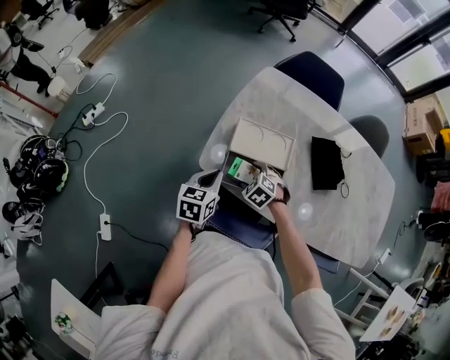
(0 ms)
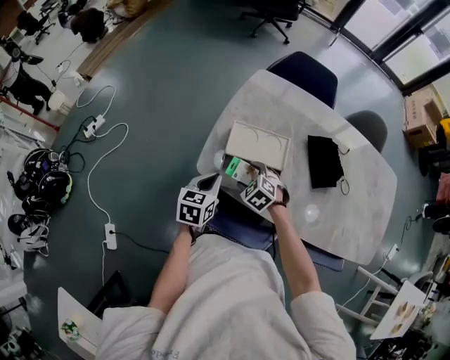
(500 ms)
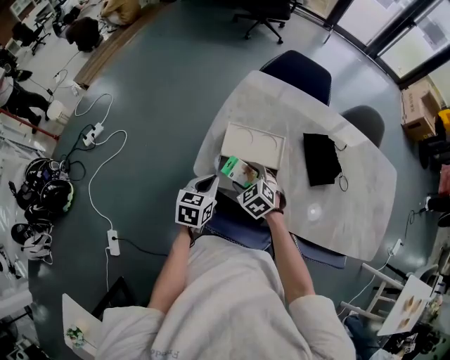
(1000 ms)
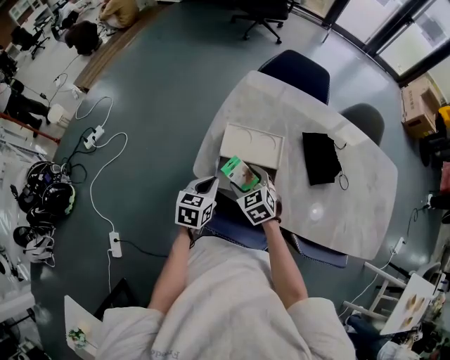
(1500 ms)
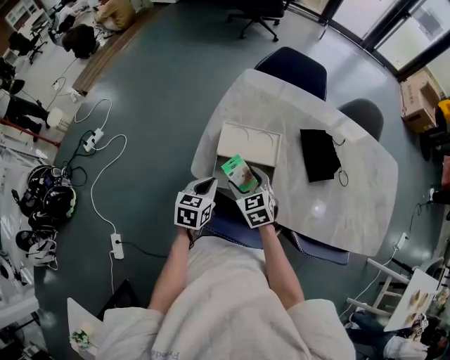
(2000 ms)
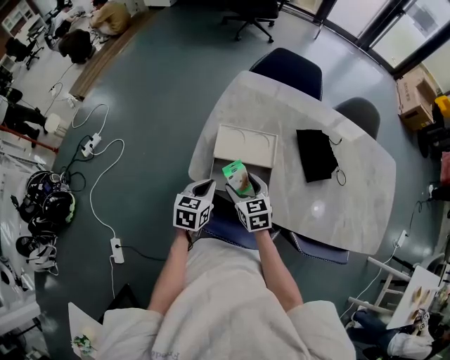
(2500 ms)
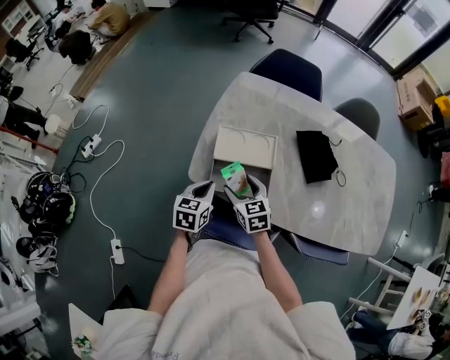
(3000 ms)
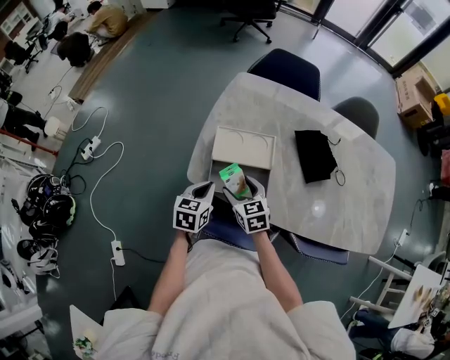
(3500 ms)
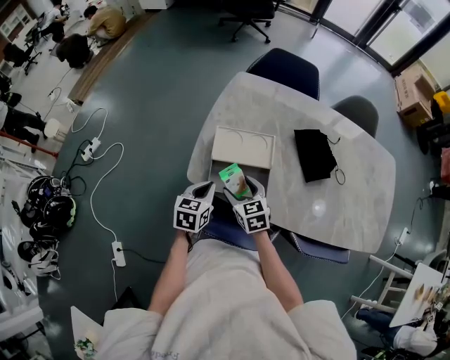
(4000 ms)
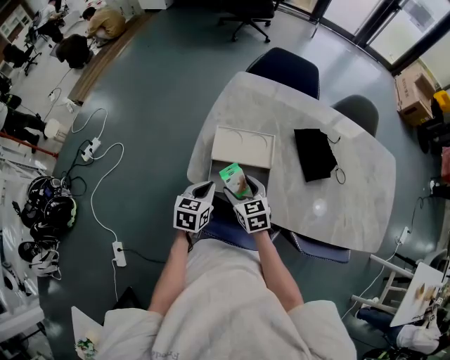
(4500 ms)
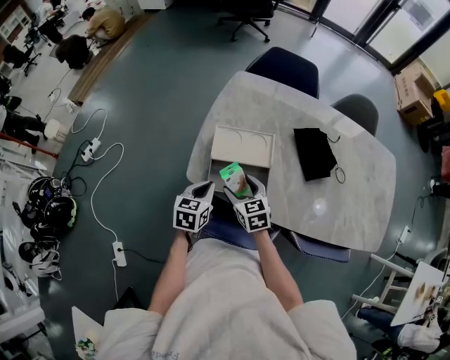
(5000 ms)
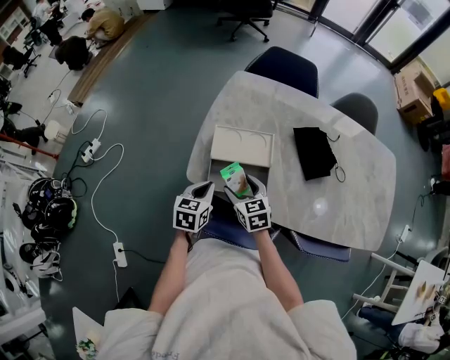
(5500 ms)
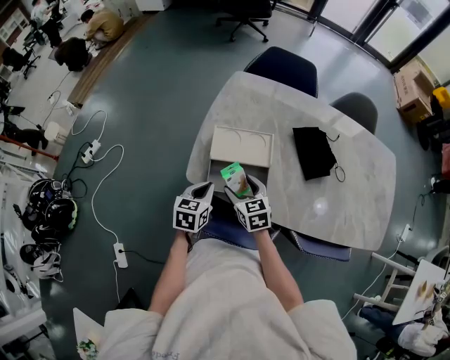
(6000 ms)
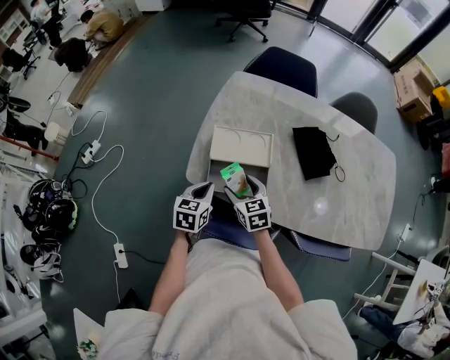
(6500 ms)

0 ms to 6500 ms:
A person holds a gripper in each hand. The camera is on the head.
0 ms to 2000 ms: The right gripper moves upward, roughly 10 cm, and changes its angle by some 40 degrees.
2000 ms to 4500 ms: The grippers stay close to where they were, moving slightly.
4500 ms to 6500 ms: Both grippers stay put.

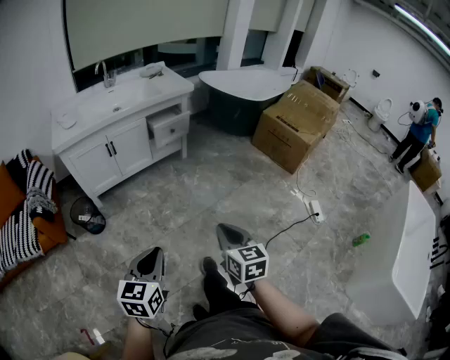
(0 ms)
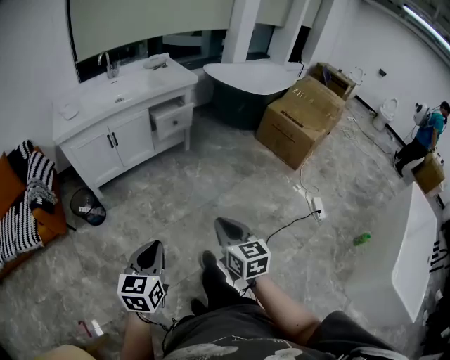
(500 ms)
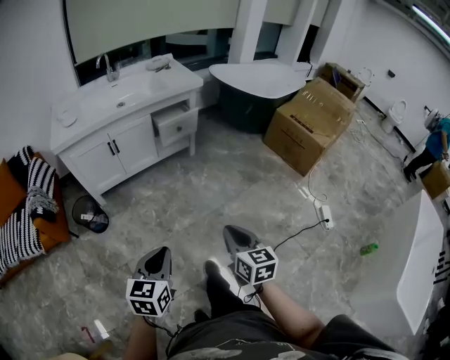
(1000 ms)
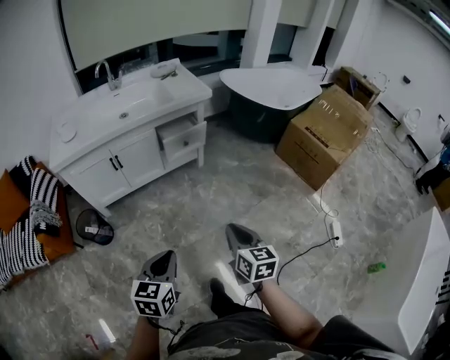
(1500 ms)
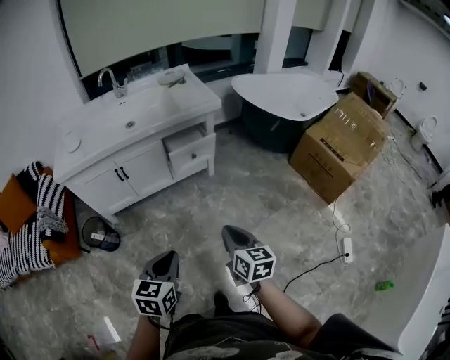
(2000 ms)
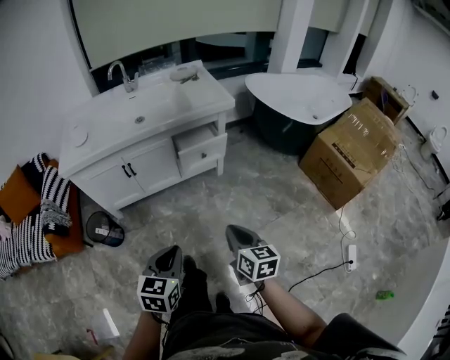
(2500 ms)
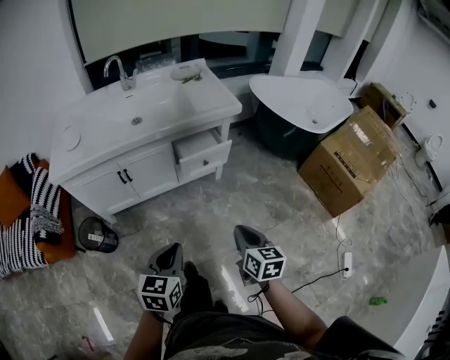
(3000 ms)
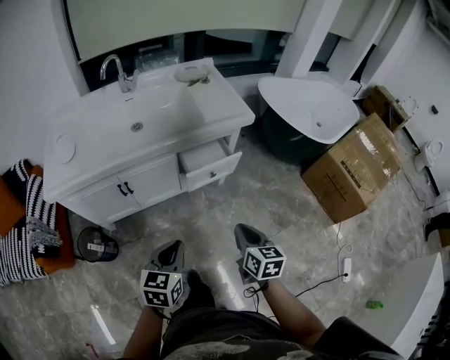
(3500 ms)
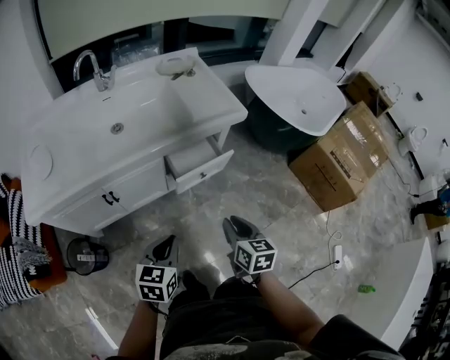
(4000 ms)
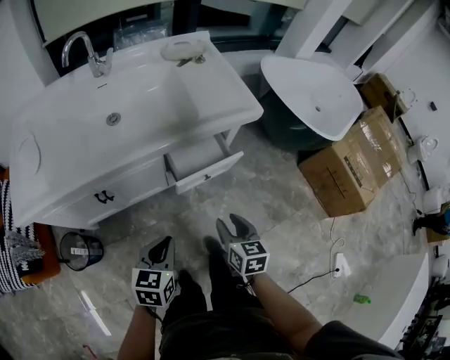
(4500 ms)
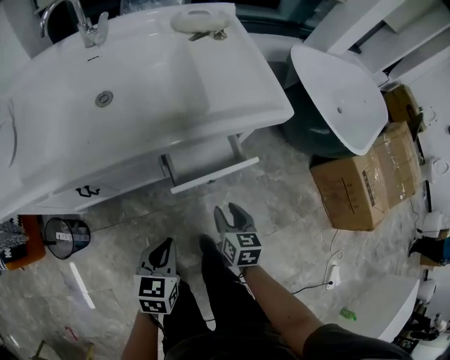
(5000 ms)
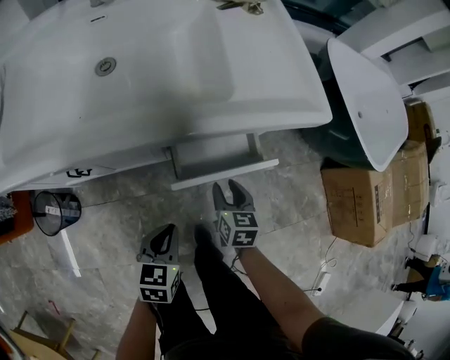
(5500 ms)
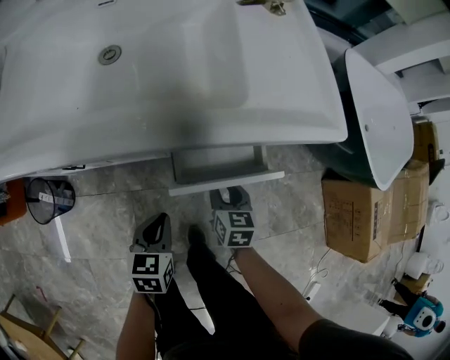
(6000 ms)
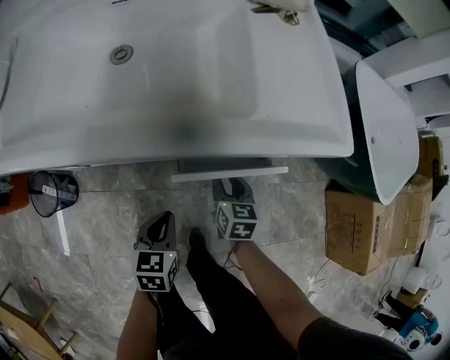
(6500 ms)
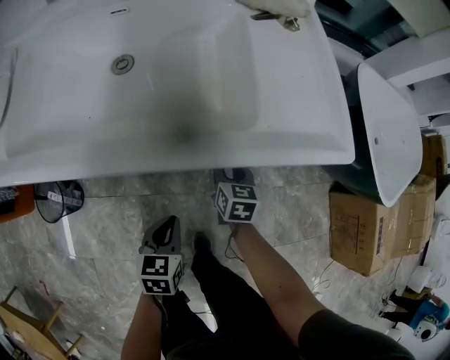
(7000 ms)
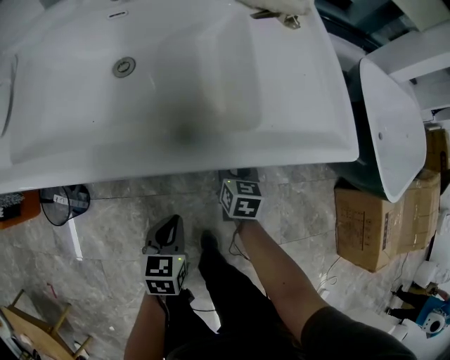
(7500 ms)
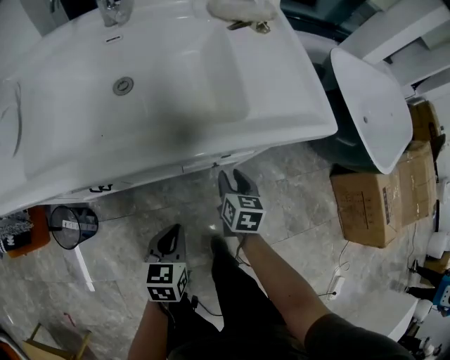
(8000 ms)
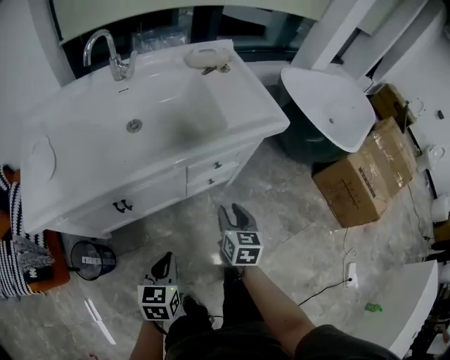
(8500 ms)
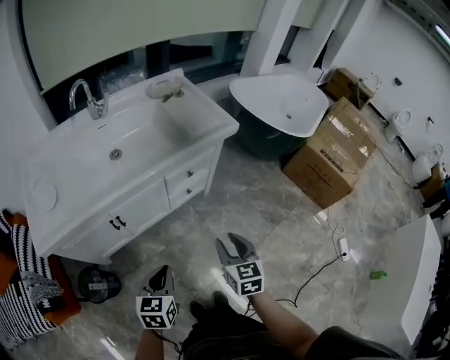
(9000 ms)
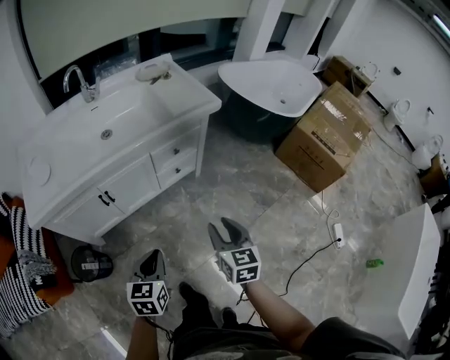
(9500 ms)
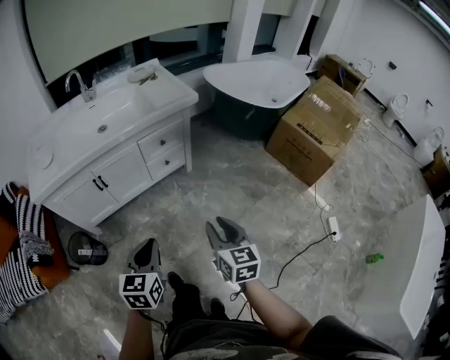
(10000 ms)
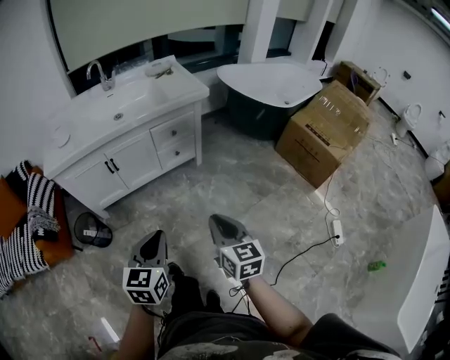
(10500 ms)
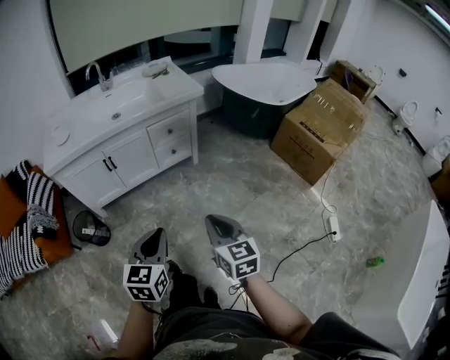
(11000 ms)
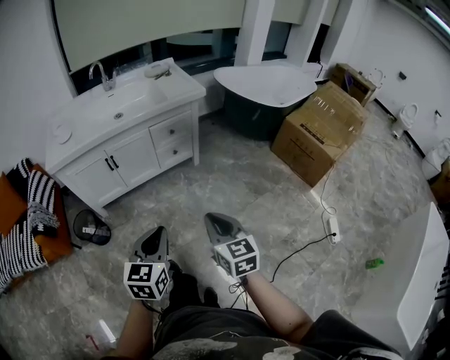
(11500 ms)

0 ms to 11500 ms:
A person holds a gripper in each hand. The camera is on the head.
0 ms to 2000 ms: The two grippers go approximately 30 cm forward.
2000 ms to 4000 ms: Both grippers travel together forward, approximately 30 cm.
4000 ms to 6000 ms: The grippers both shift downward and forward by about 35 cm. The right gripper changes its angle by some 20 degrees, and opens up. Meanwhile the left gripper rotates approximately 30 degrees.
6000 ms to 7500 ms: The right gripper is displaced forward by some 10 cm.
7500 ms to 9500 ms: The two grippers go some 50 cm backward and upward. The left gripper rotates about 30 degrees. The right gripper swivels roughly 20 degrees.
9500 ms to 11500 ms: The left gripper shifts roughly 30 cm backward, to the right and upward; the right gripper is displaced backward by roughly 25 cm, and closes up.

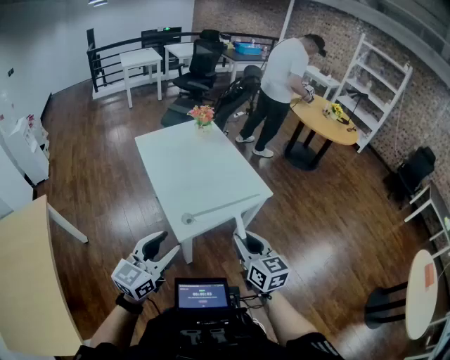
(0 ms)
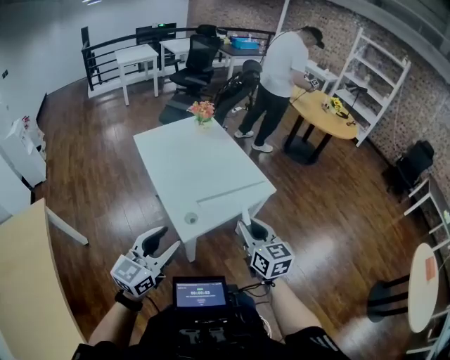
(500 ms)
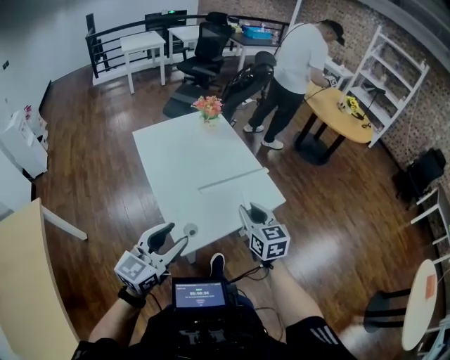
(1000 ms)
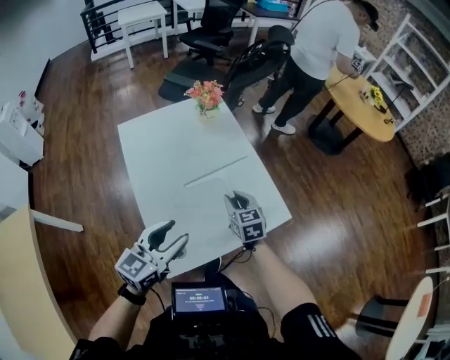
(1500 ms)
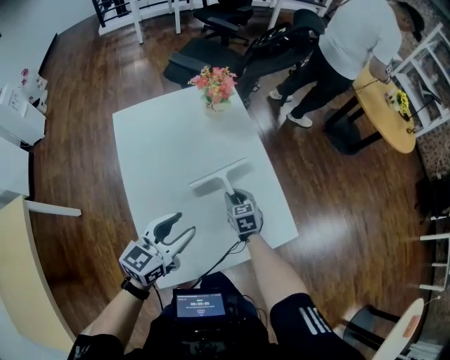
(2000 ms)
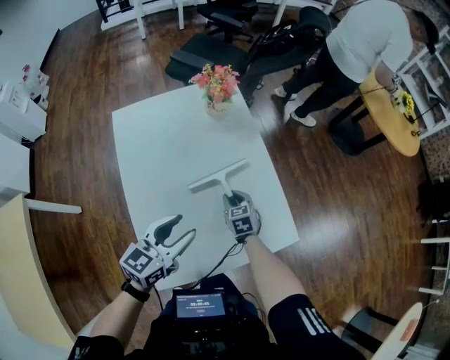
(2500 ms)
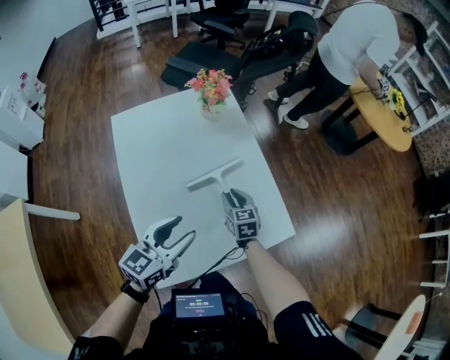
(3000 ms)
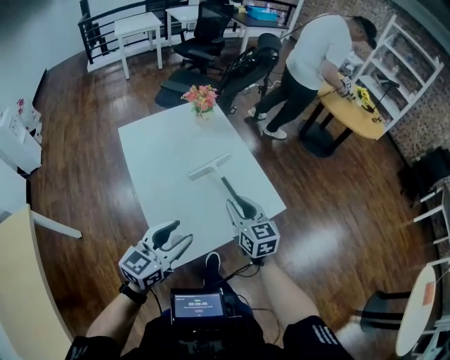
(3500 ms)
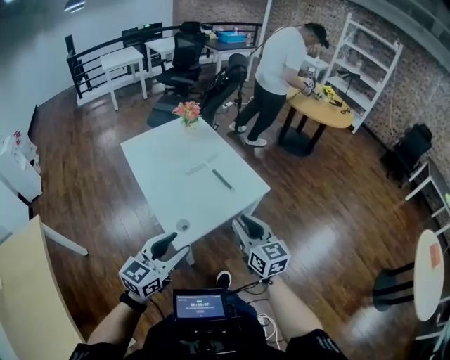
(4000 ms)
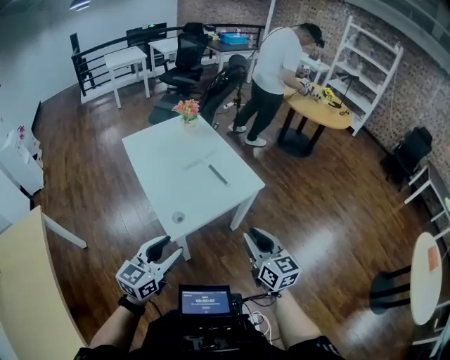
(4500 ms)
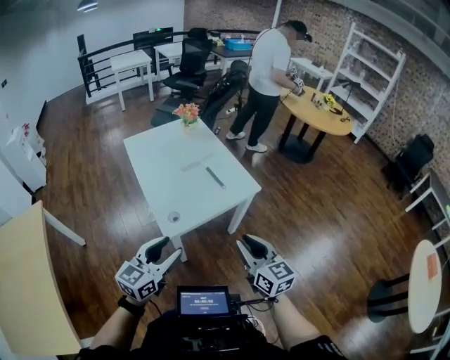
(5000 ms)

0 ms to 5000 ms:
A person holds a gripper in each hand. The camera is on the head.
0 ms to 2500 ms: The two grippers travel together, forward, some 50 cm. The right gripper travels downward by some 35 cm, and angles its fingers downward, by about 30 degrees.
2500 ms to 5000 ms: The pair of grippers is taken backward, approximately 50 cm. The right gripper moves upward, approximately 35 cm, and tips its fingers upward by some 40 degrees.

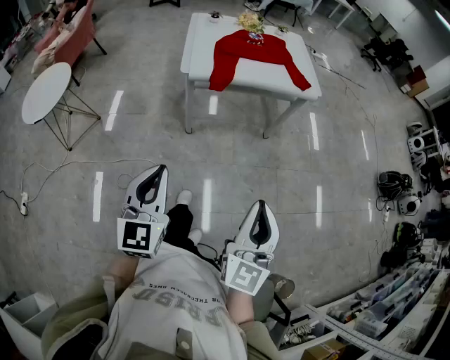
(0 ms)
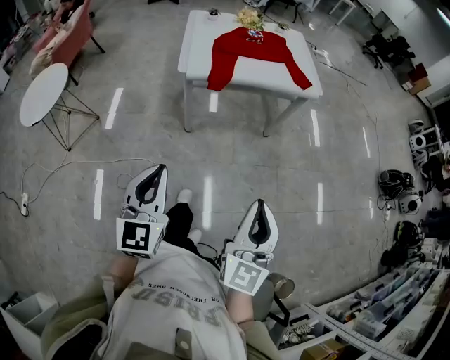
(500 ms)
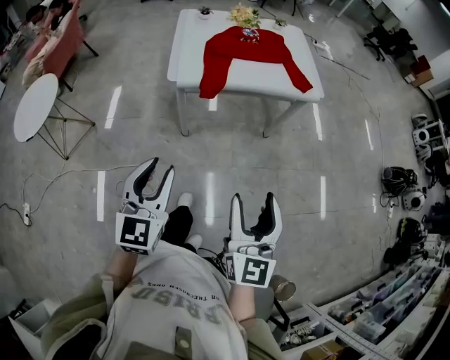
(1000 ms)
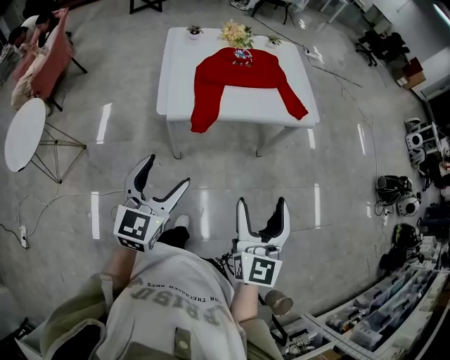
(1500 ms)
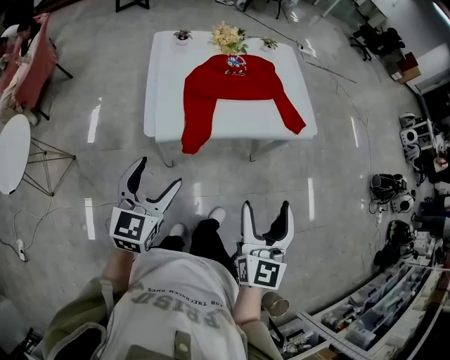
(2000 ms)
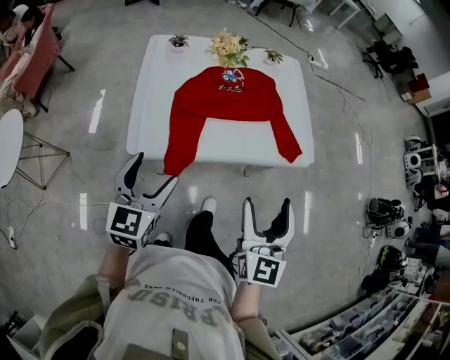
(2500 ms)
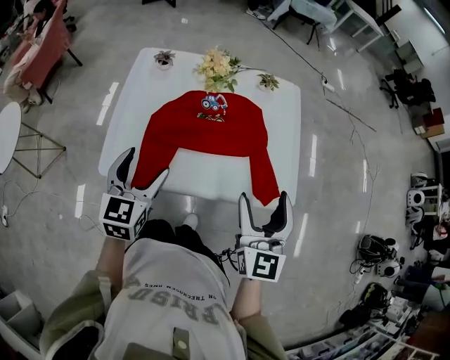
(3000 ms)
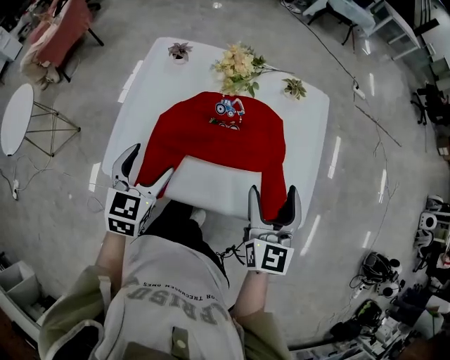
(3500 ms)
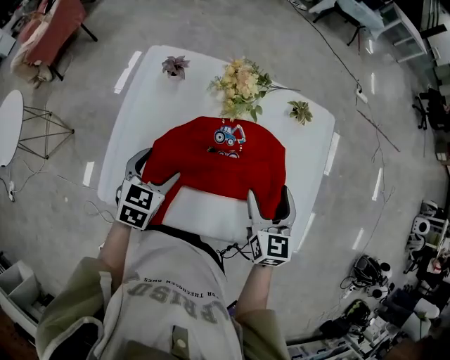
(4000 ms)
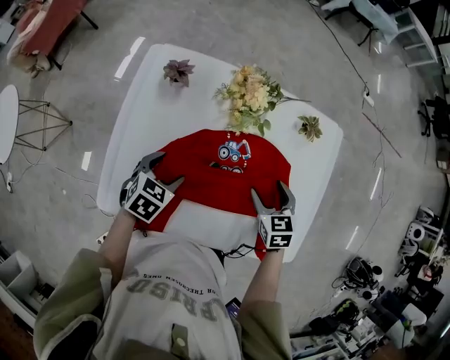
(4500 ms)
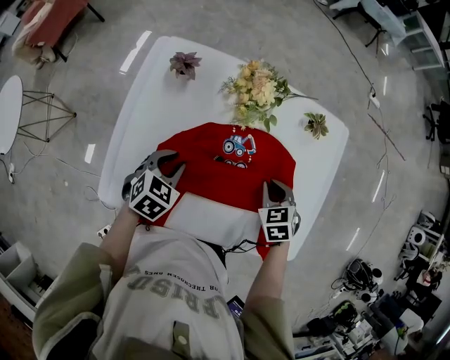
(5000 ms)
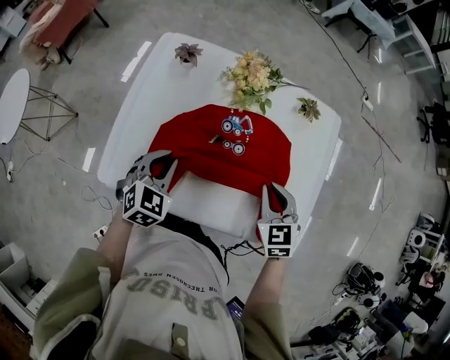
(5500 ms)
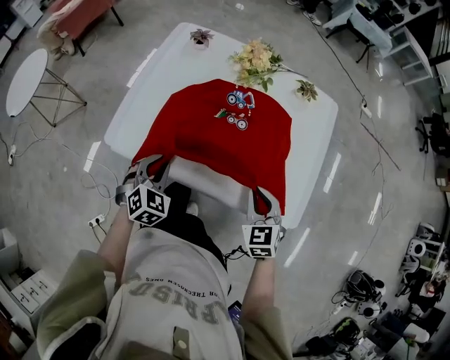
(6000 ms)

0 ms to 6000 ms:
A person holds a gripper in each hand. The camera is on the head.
0 ms to 2000 ms: Both grippers travel together forward, approximately 35 cm. The right gripper opens its fingers, while the left gripper opens its fingers.
2000 ms to 4000 ms: The two grippers go some 40 cm forward. The right gripper rotates roughly 30 degrees. Meanwhile the left gripper swivels approximately 30 degrees.
4000 ms to 6000 ms: Both grippers travel together backward, roughly 15 cm. The left gripper rotates approximately 30 degrees, and closes. The right gripper swivels about 30 degrees, and closes.
